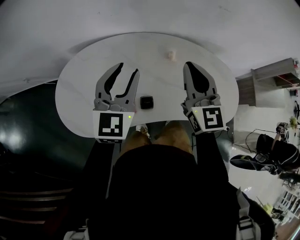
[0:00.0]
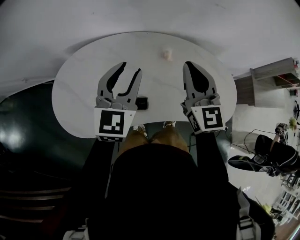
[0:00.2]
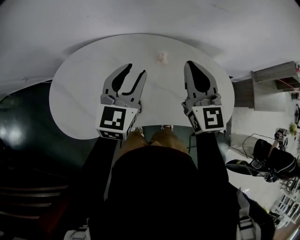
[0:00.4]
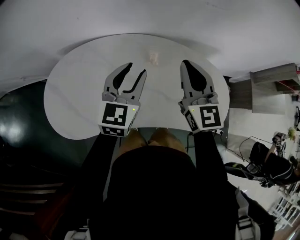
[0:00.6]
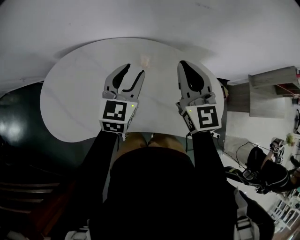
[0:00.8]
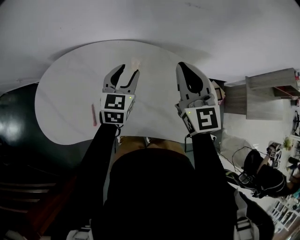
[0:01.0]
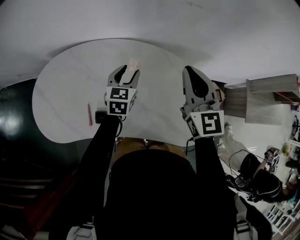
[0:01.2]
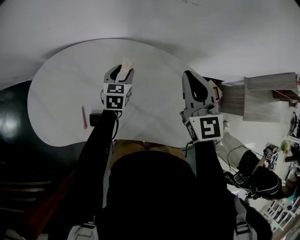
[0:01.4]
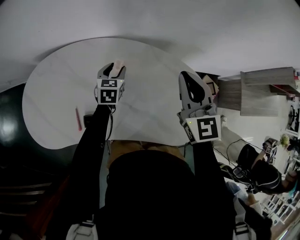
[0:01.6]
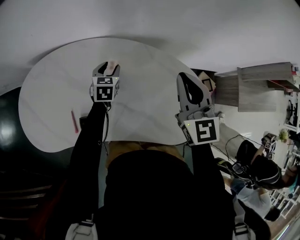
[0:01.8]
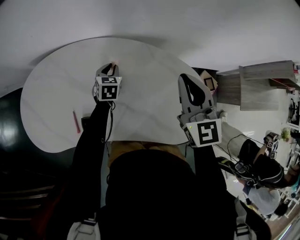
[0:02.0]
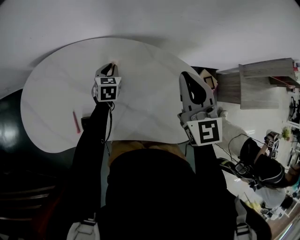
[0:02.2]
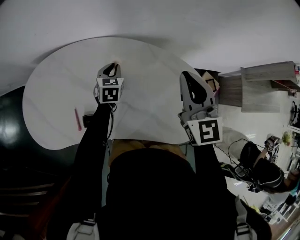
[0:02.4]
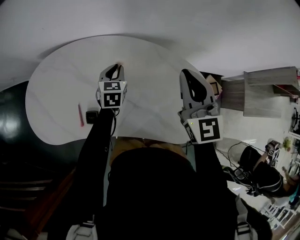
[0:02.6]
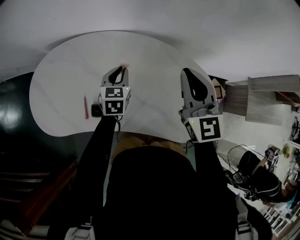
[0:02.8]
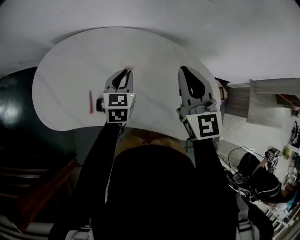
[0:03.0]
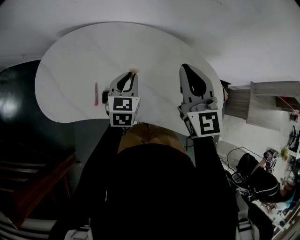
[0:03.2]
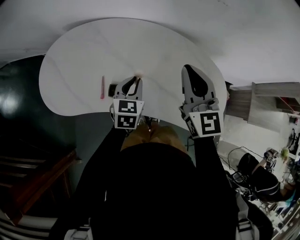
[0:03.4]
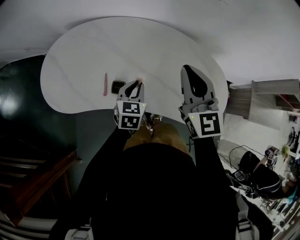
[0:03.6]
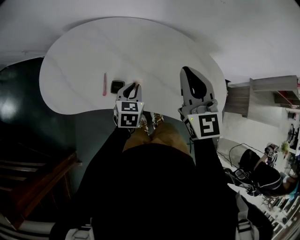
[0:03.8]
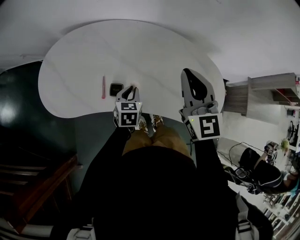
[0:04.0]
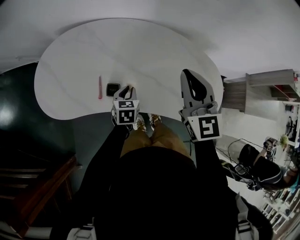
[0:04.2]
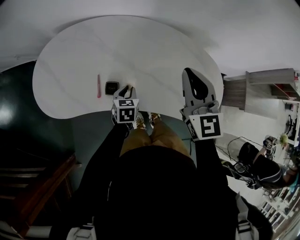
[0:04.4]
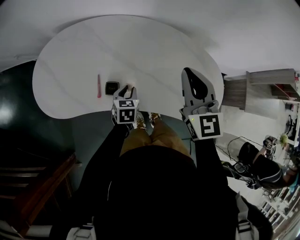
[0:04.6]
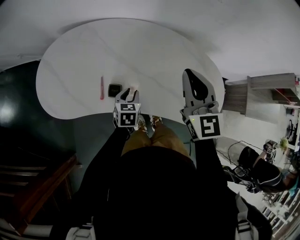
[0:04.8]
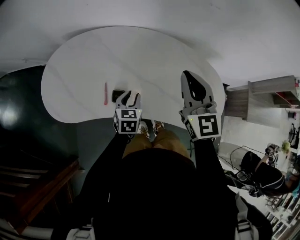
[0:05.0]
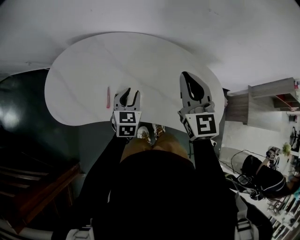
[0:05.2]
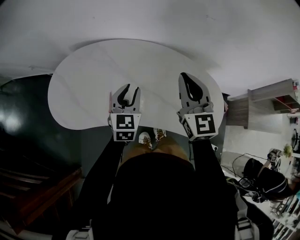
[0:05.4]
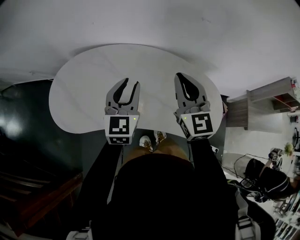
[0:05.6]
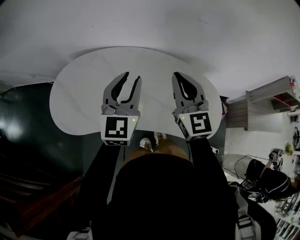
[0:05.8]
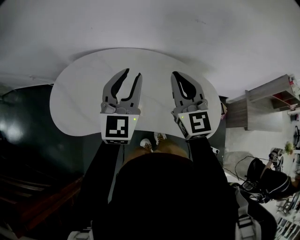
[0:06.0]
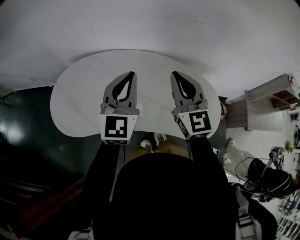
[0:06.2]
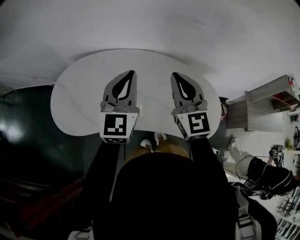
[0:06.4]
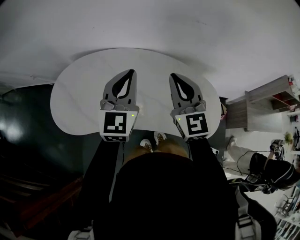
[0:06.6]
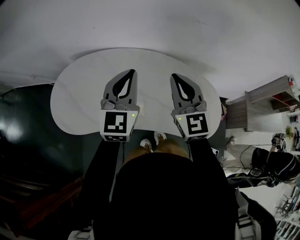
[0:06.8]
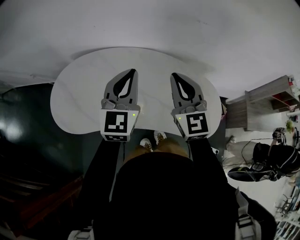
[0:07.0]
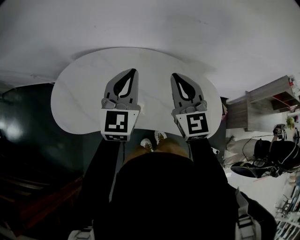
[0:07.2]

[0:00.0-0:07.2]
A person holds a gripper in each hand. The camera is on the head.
0:00.0 to 0:01.4: The right gripper moves to the right and forward, approximately 25 cm, while the left gripper goes roughly 35 cm downward, to the right and forward, and rotates approximately 30 degrees.
0:01.4 to 0:02.8: The left gripper goes downward and returns, about 5 cm each way, and closes up.
0:02.8 to 0:04.4: The left gripper moves backward and downward, about 20 cm; the right gripper shifts about 10 cm to the left and backward.
0:04.4 to 0:05.8: The left gripper shifts some 35 cm upward, and tips its fingers upward by about 50 degrees. Meanwhile the right gripper moves upward, roughly 5 cm.
0:05.8 to 0:07.2: The grippers move only a little.

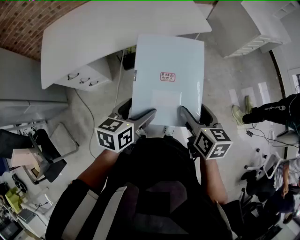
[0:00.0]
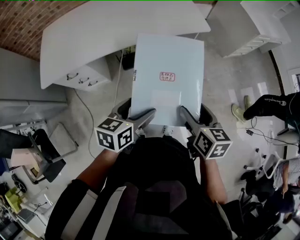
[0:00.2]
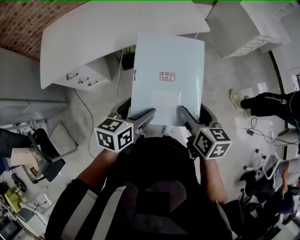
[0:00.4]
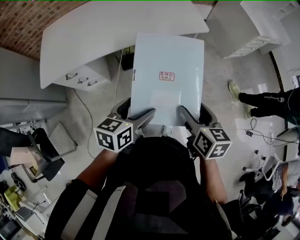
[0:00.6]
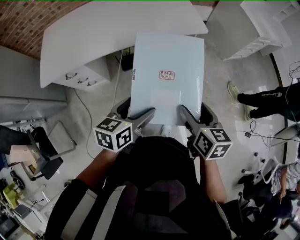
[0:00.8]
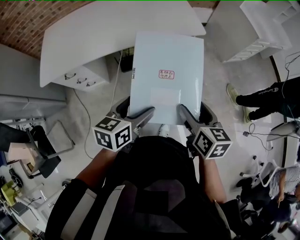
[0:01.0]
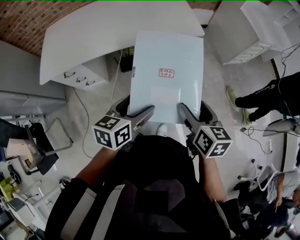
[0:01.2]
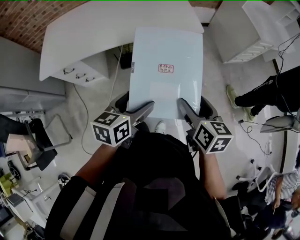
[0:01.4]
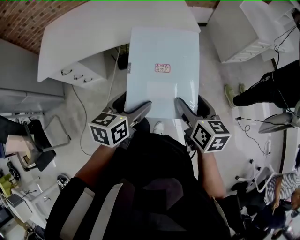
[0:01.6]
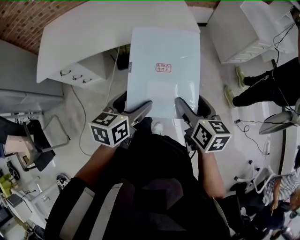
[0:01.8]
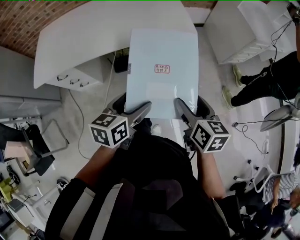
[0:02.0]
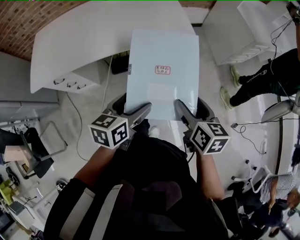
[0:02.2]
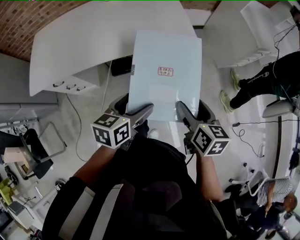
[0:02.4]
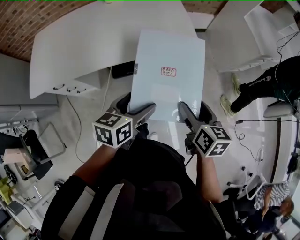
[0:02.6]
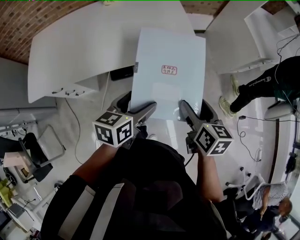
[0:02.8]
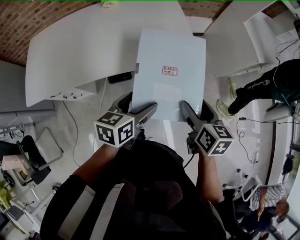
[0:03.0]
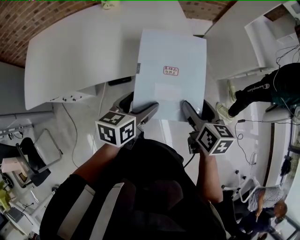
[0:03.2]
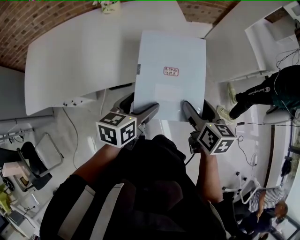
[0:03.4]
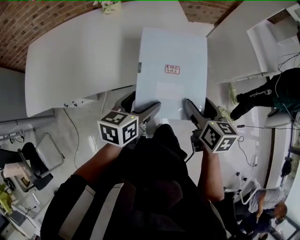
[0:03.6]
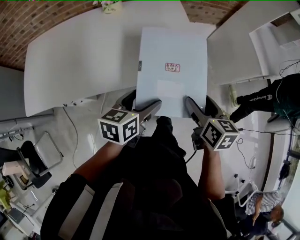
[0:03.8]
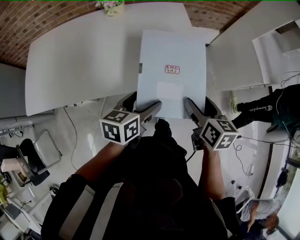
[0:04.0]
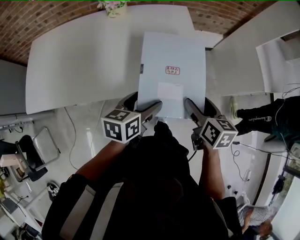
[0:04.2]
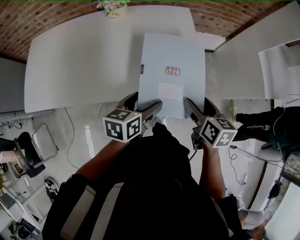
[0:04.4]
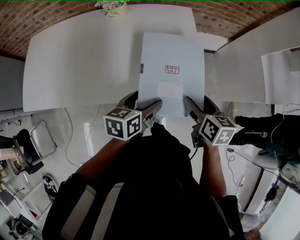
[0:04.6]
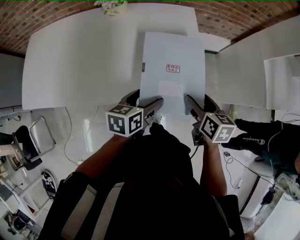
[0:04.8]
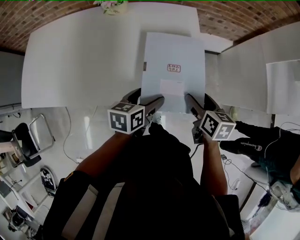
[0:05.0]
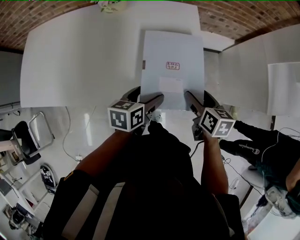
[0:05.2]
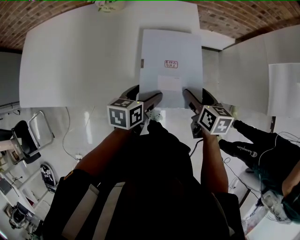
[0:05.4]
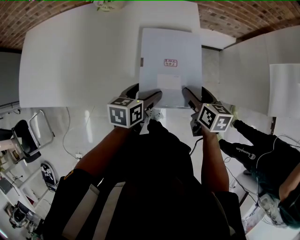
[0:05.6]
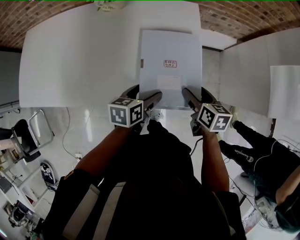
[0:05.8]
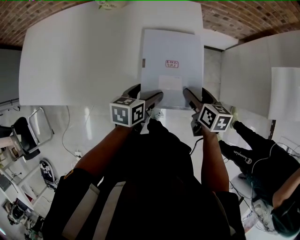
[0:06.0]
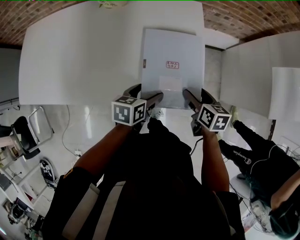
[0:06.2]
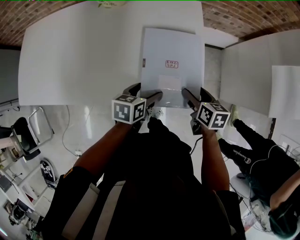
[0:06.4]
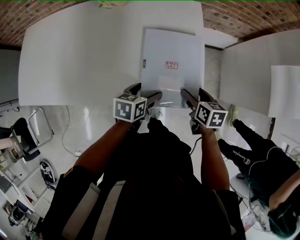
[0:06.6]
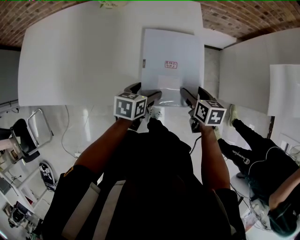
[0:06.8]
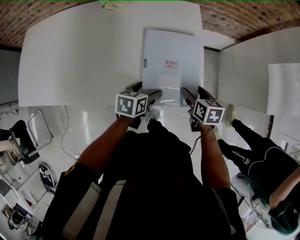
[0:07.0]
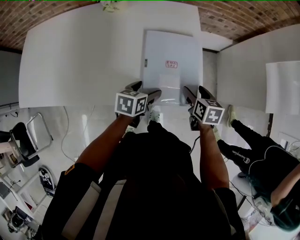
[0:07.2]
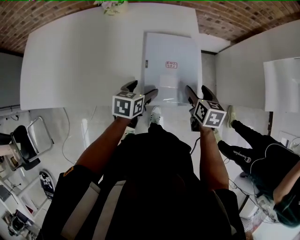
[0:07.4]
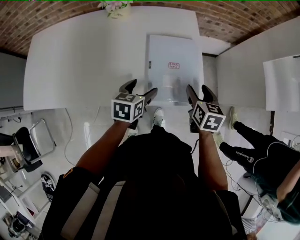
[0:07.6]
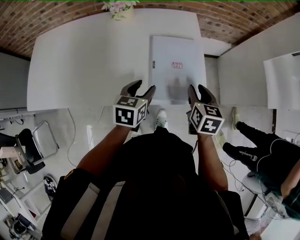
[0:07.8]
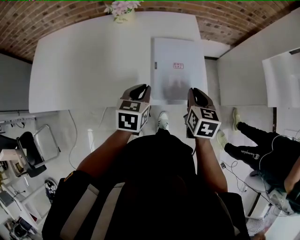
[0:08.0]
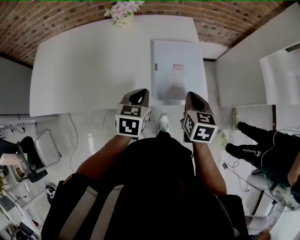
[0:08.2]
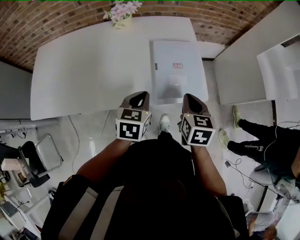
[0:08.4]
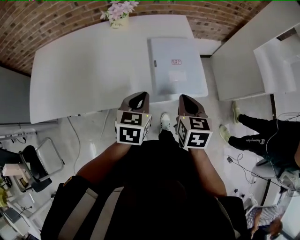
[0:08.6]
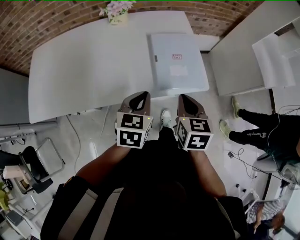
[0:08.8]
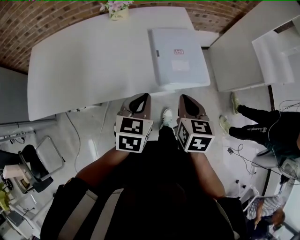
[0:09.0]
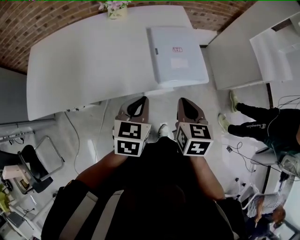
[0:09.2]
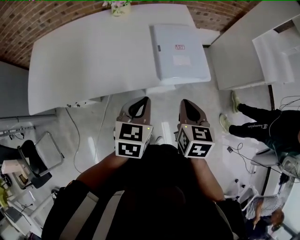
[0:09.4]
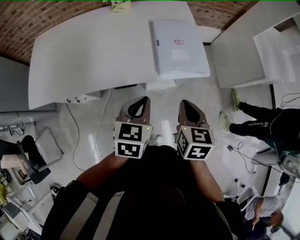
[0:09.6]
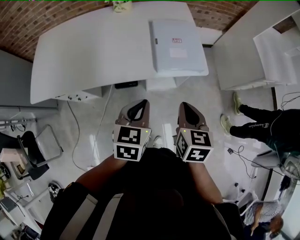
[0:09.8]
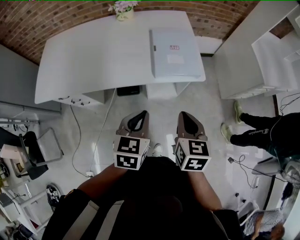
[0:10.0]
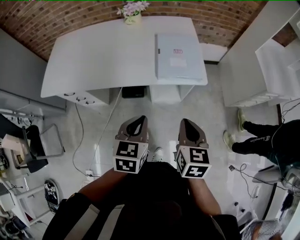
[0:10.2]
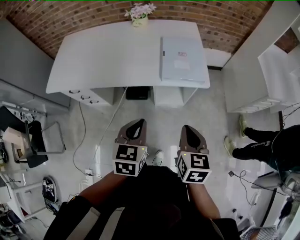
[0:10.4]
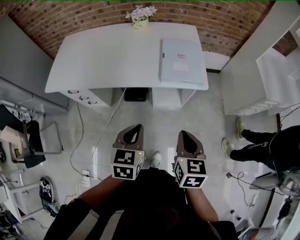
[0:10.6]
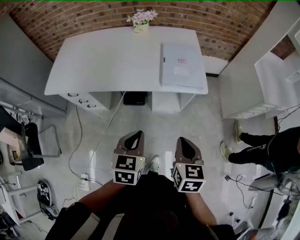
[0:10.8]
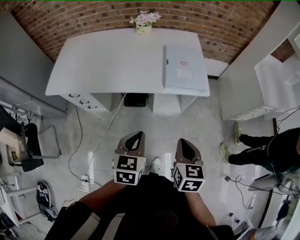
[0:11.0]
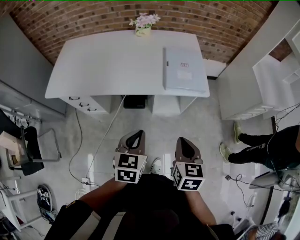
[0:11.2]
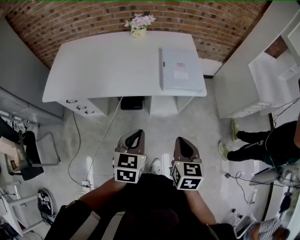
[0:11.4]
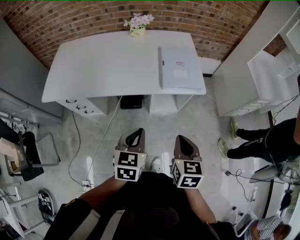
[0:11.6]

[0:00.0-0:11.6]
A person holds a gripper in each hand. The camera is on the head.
0:00.0 to 0:01.4: Both grippers move to the right, some 10 cm.
0:01.4 to 0:02.8: Both grippers travel together forward, roughly 15 cm.
0:02.8 to 0:04.4: Both grippers travel together forward, roughly 20 cm.
0:04.4 to 0:05.8: Both grippers travel together forward and downward, approximately 15 cm.
0:05.8 to 0:07.2: There are only small adjustments of the grippers.
0:07.2 to 0:08.8: The left gripper shifts about 20 cm upward, backward and to the left, swivels about 30 degrees, and closes up. Meanwhile the right gripper moves backward, upward and to the left, approximately 25 cm, and closes up.
0:08.8 to 0:10.2: The left gripper goes about 20 cm backward, while the right gripper moves backward and to the right, approximately 20 cm.
0:10.2 to 0:11.6: The right gripper goes roughly 10 cm backward and to the left. Meanwhile the left gripper heads to the left, covering approximately 5 cm.

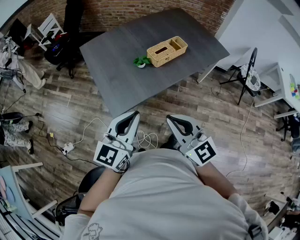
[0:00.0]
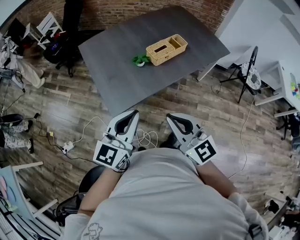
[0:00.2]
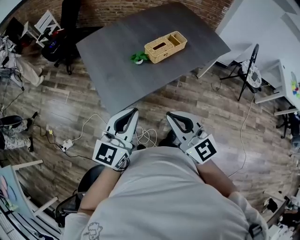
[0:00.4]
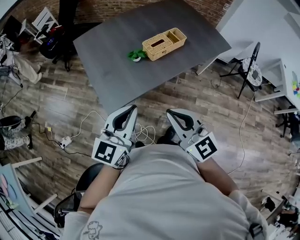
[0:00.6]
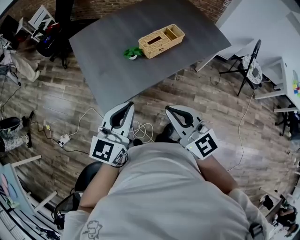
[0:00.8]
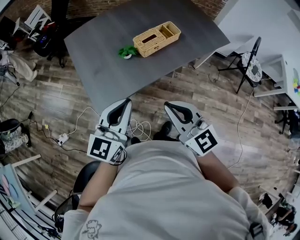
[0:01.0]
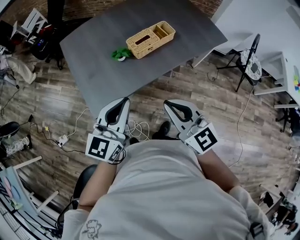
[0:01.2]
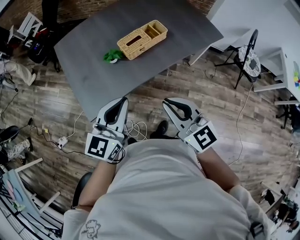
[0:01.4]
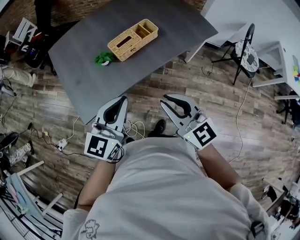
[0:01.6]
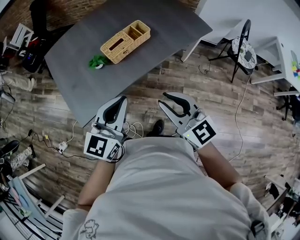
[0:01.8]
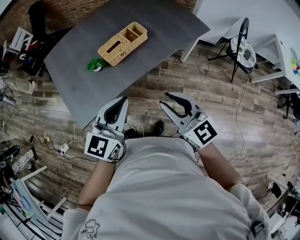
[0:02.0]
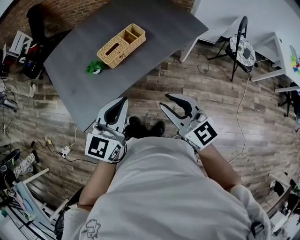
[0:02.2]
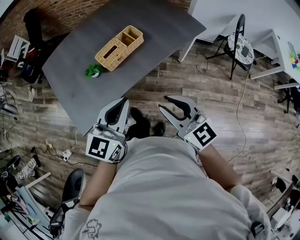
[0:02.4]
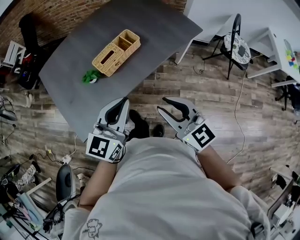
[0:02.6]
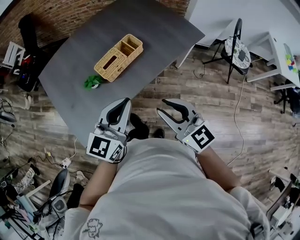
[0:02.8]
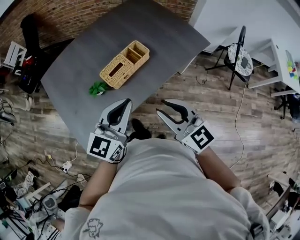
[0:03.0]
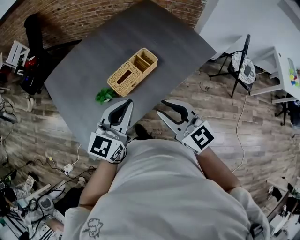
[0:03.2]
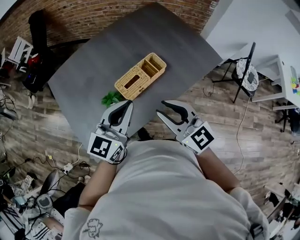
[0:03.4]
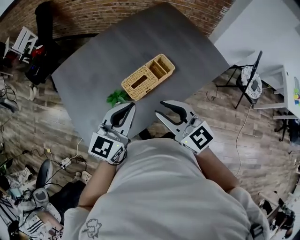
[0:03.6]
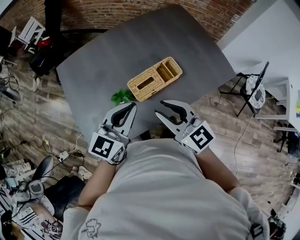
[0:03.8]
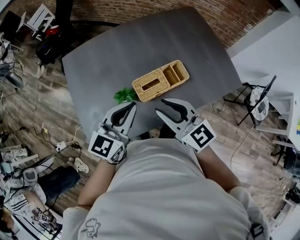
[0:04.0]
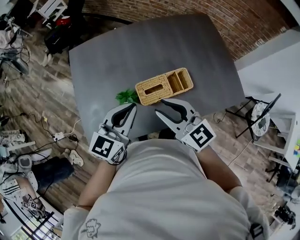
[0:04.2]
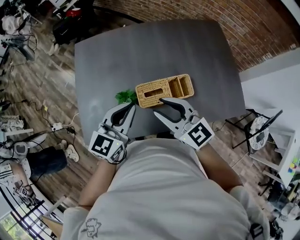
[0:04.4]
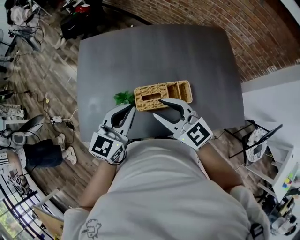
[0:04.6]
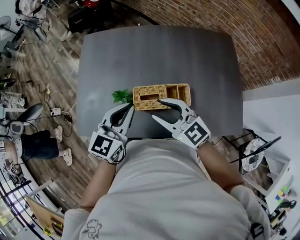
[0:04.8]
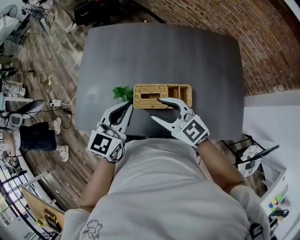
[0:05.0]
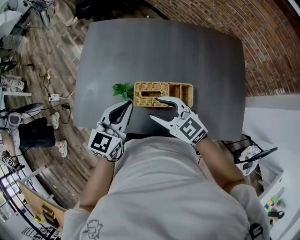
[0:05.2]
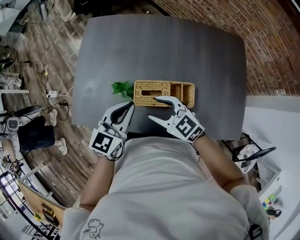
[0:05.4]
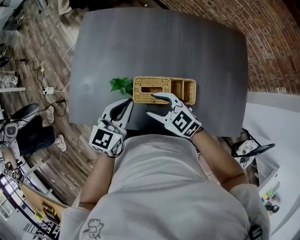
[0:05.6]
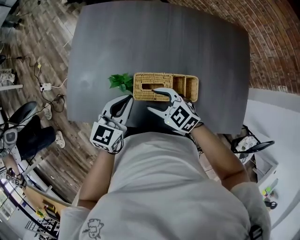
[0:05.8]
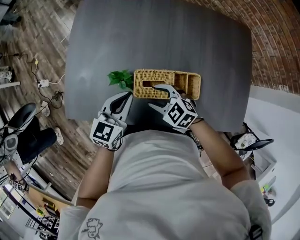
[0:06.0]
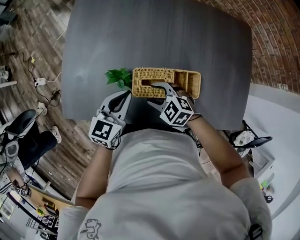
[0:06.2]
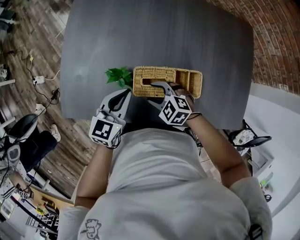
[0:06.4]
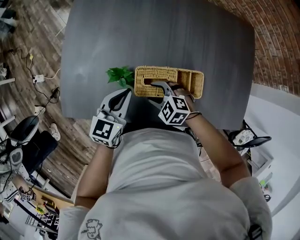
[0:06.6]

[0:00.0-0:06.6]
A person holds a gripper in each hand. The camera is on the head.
0:00.0 to 0:01.6: The two grippers go approximately 20 cm to the right and forward.
0:01.6 to 0:03.2: The two grippers go approximately 15 cm forward.
0:03.2 to 0:05.0: The left gripper shifts by approximately 15 cm, and rotates roughly 40 degrees, while the right gripper ends up about 20 cm from where it was, rotates approximately 50 degrees, and opens up.
0:05.0 to 0:06.6: The left gripper heads downward, covering about 15 cm. The right gripper shifts some 25 cm downward, and points its fingers approximately 40 degrees further downward.
